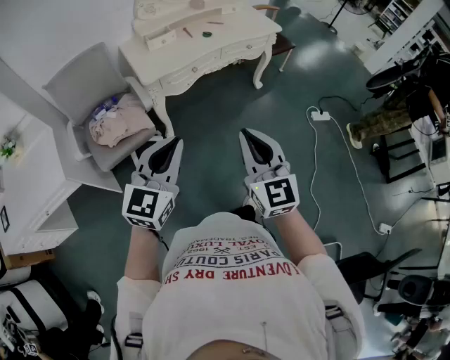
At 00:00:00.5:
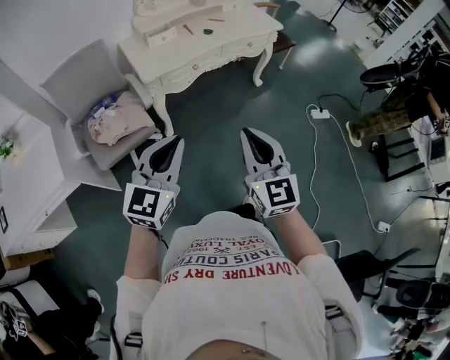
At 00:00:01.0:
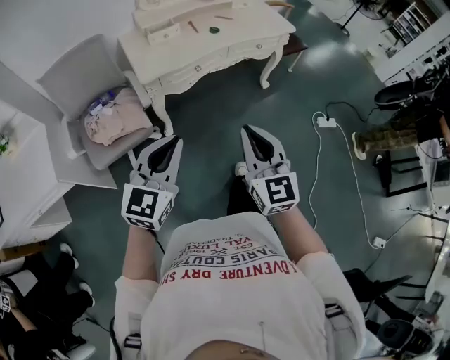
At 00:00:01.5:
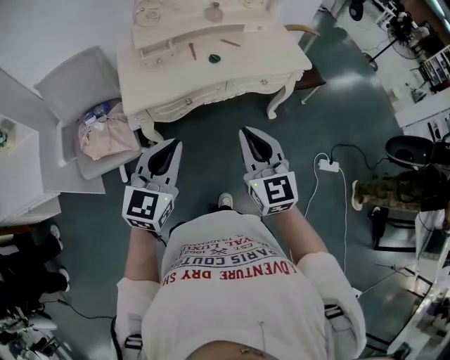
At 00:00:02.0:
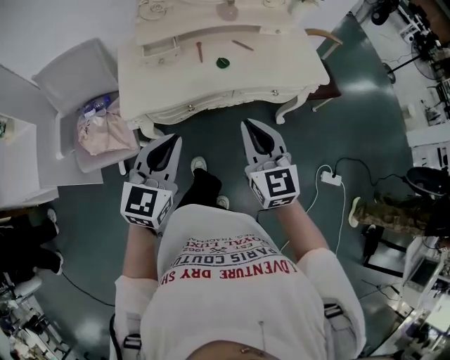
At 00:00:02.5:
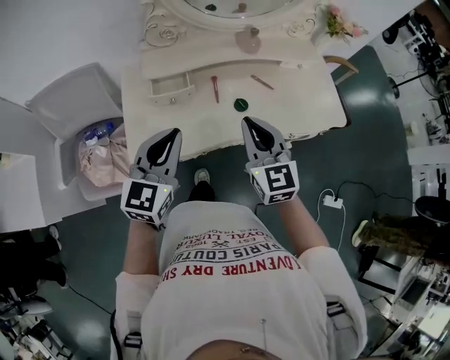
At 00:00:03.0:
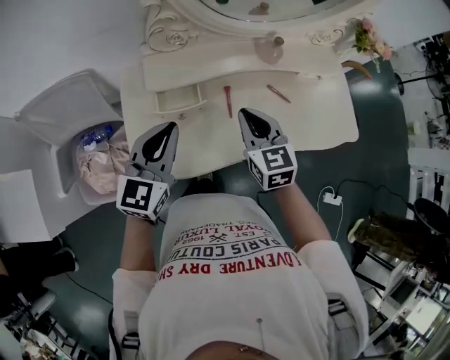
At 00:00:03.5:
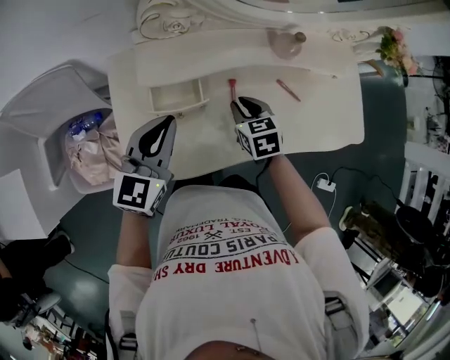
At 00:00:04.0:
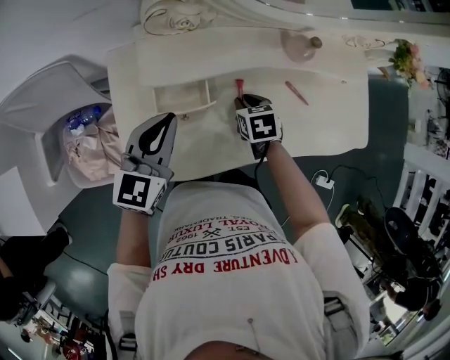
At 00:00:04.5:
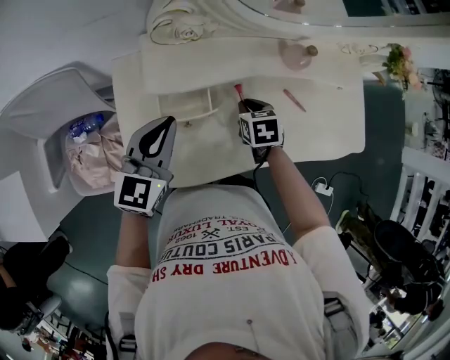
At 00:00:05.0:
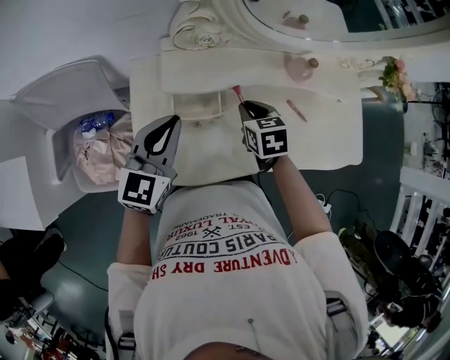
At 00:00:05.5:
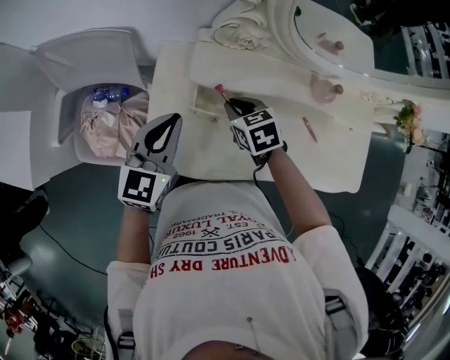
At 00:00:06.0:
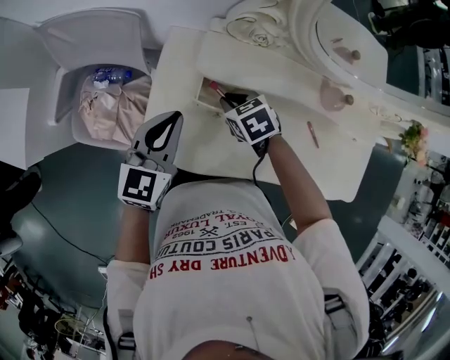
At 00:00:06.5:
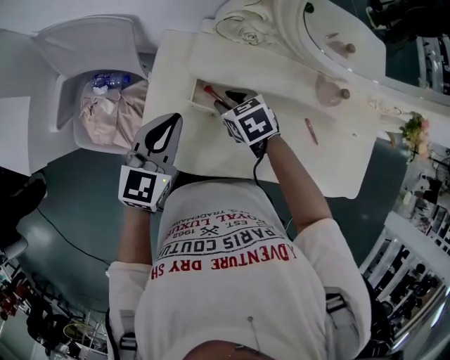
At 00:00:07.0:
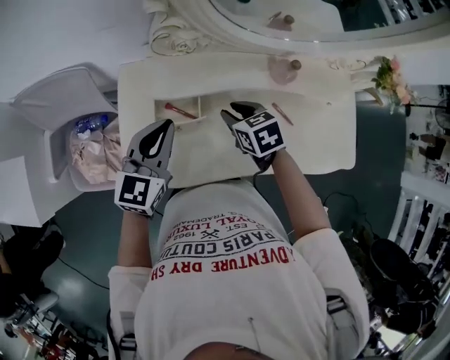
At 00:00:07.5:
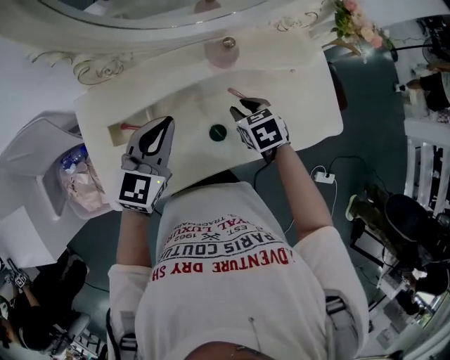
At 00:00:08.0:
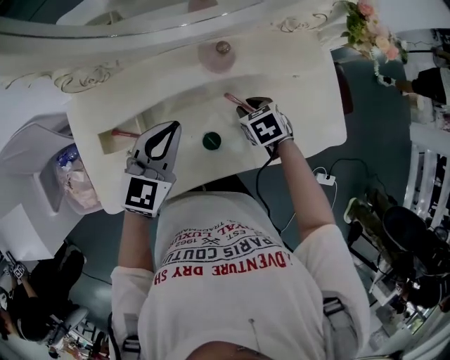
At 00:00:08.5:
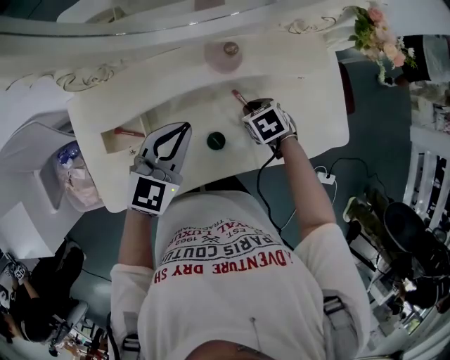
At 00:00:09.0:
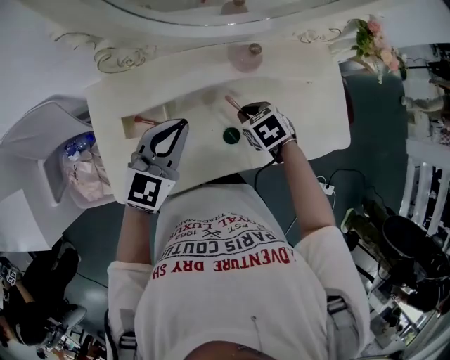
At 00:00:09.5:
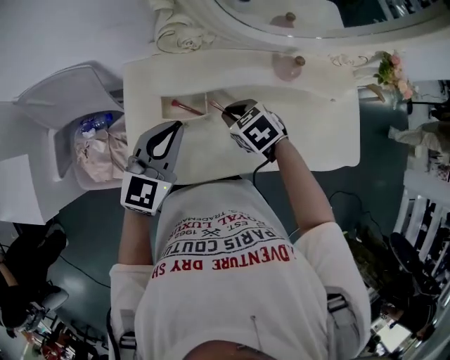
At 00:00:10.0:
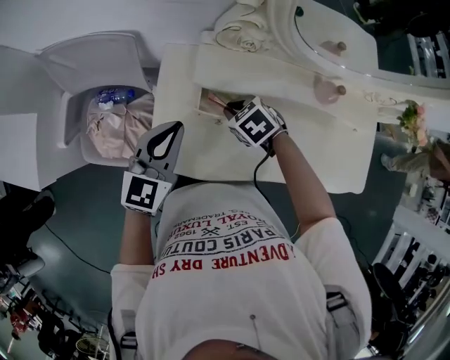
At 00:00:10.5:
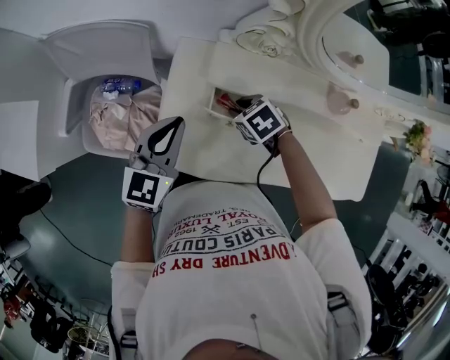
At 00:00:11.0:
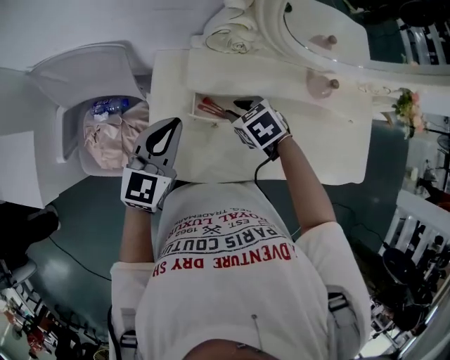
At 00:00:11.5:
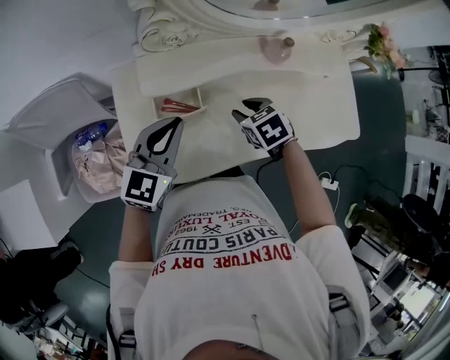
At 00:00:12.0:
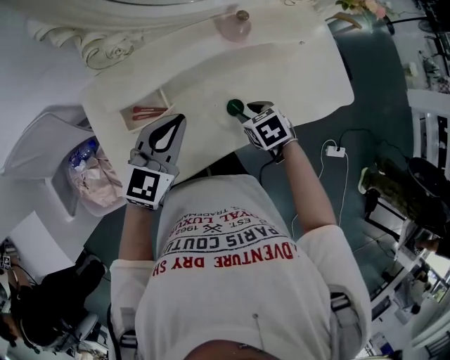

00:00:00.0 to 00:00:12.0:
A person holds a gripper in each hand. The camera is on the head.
00:00:00.0 to 00:00:02.0: The pair of grippers is taken forward, about 50 cm. The left gripper rotates approximately 20 degrees; the right gripper swivels some 20 degrees.
00:00:02.0 to 00:00:04.0: Both grippers are carried forward, some 40 cm. The right gripper travels downward by approximately 30 cm, and angles its fingers downward, by approximately 50 degrees.
00:00:04.0 to 00:00:06.0: The right gripper ends up some 20 cm from where it was, and swivels about 40 degrees. The left gripper moves roughly 10 cm, and rotates some 20 degrees.
00:00:06.0 to 00:00:08.0: The left gripper ends up roughly 30 cm from where it was, and swivels some 30 degrees. Meanwhile the right gripper changes place by some 40 cm, and swivels about 30 degrees.
00:00:08.0 to 00:00:10.0: The left gripper ends up roughly 30 cm from where it was, and turns by roughly 20 degrees. Meanwhile the right gripper moves roughly 40 cm, and swivels roughly 40 degrees.
00:00:10.0 to 00:00:12.0: The right gripper changes place by roughly 30 cm, rolls clockwise, seen from behind, by some 40 degrees, and opens up. Meanwhile the left gripper moves approximately 20 cm, and turns by approximately 30 degrees.

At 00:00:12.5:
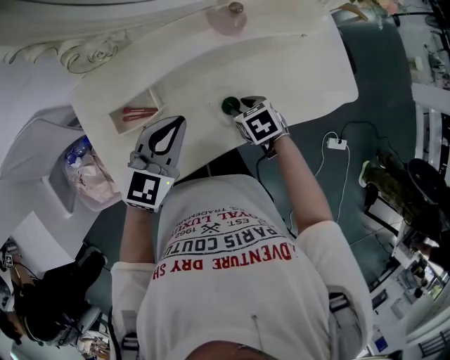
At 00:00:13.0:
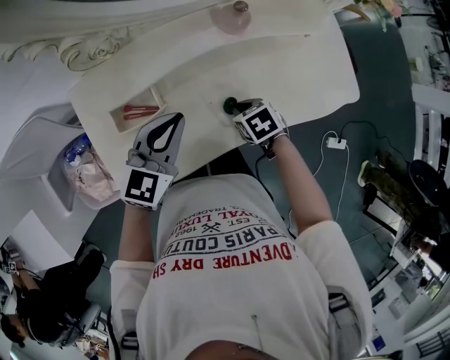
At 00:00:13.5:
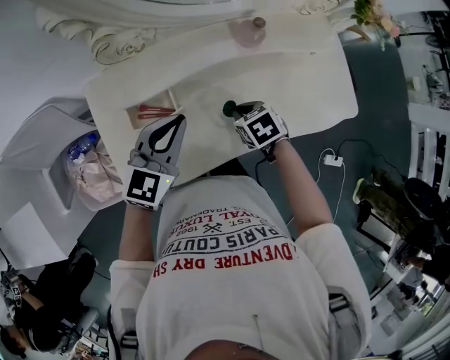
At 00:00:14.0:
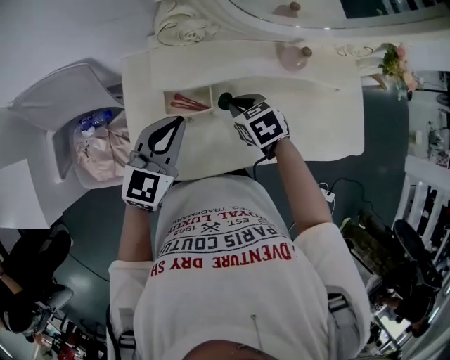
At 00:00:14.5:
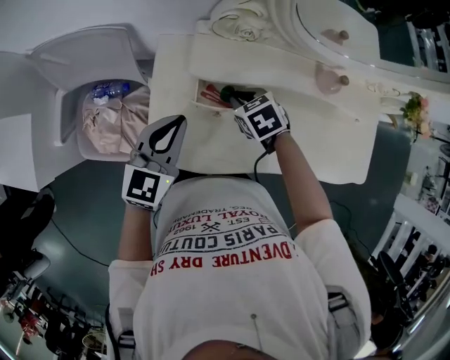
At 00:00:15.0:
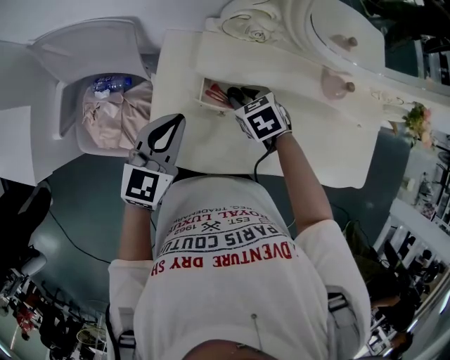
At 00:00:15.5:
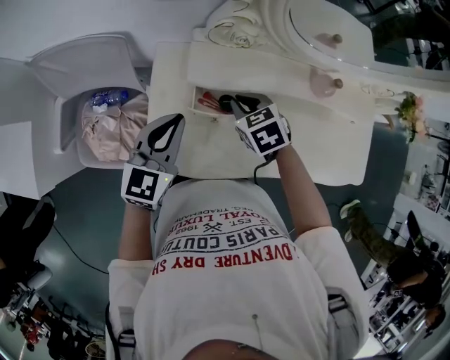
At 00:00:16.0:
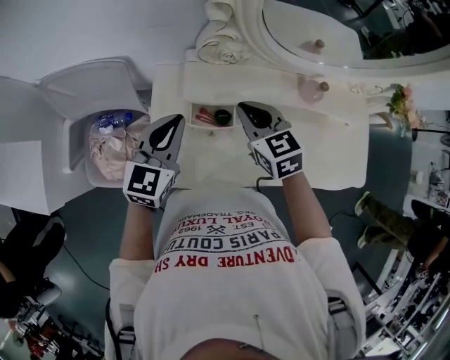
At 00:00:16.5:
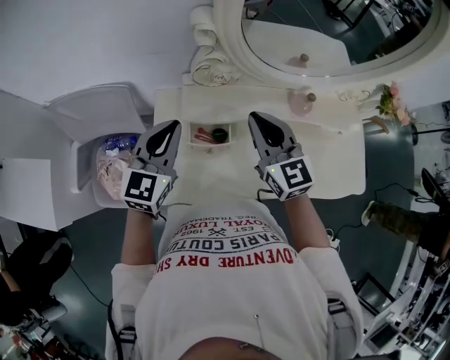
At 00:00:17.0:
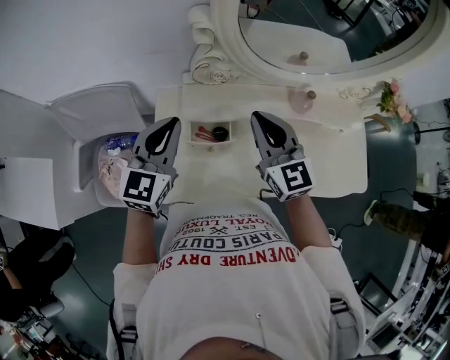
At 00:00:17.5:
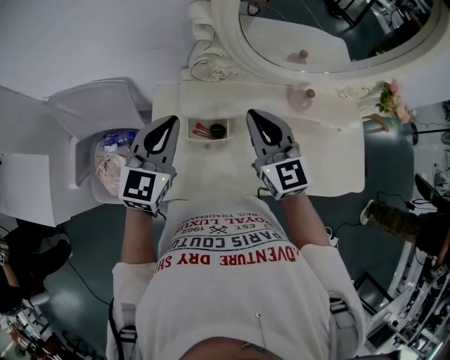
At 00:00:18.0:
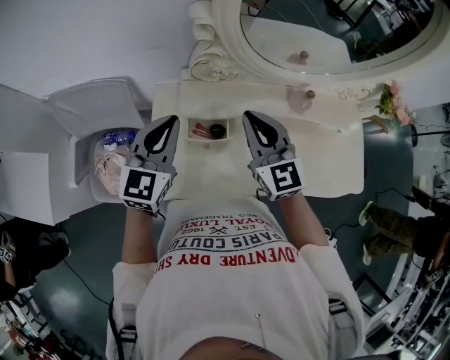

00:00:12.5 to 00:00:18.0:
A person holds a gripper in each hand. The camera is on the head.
00:00:12.5 to 00:00:14.5: The left gripper moves to the left, roughly 20 cm, and swivels about 30 degrees, while the right gripper is displaced to the left and forward by approximately 25 cm, turns by roughly 30 degrees, and closes its fingers.
00:00:14.5 to 00:00:16.0: The left gripper changes place by about 5 cm. The right gripper heads upward, covering approximately 15 cm, turns by roughly 30 degrees, and opens, then closes once more.
00:00:16.0 to 00:00:18.0: Both grippers travel together upward, about 5 cm. The right gripper turns by approximately 30 degrees.

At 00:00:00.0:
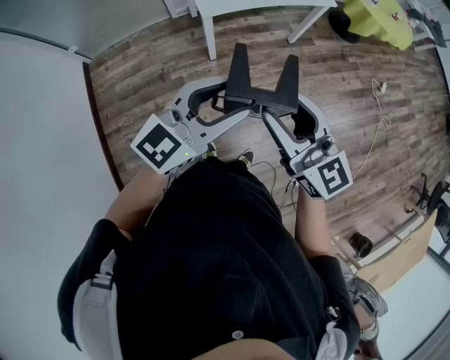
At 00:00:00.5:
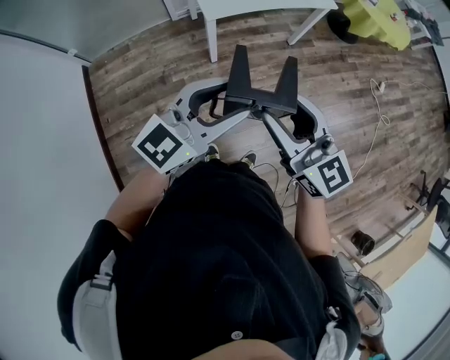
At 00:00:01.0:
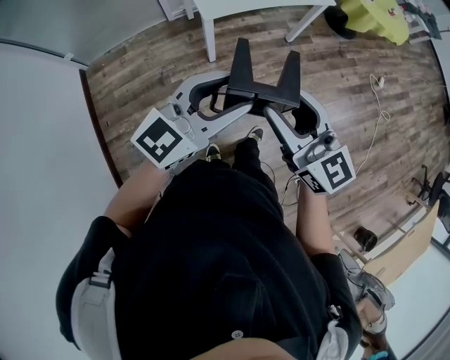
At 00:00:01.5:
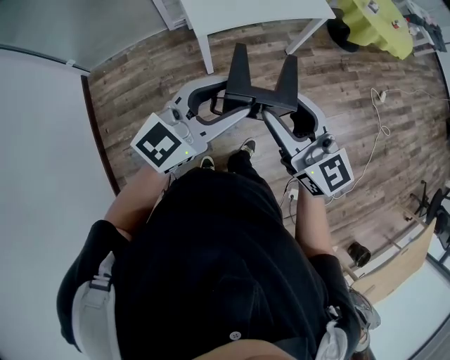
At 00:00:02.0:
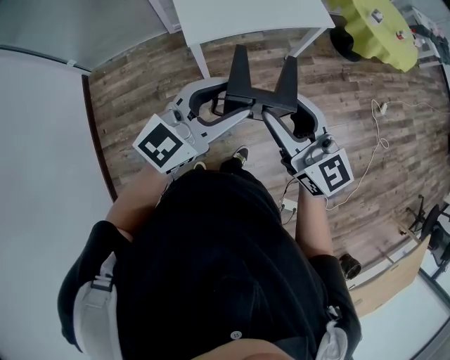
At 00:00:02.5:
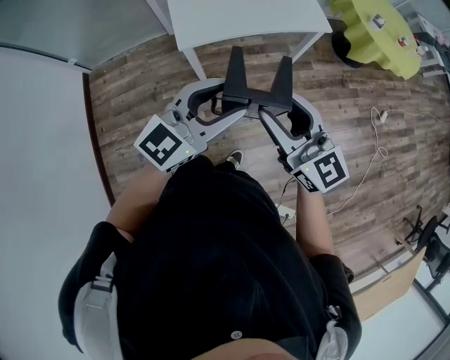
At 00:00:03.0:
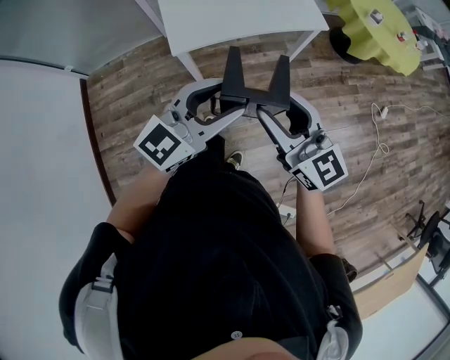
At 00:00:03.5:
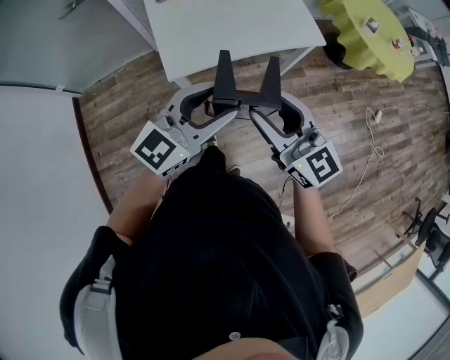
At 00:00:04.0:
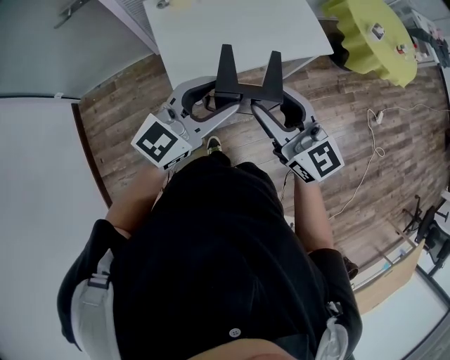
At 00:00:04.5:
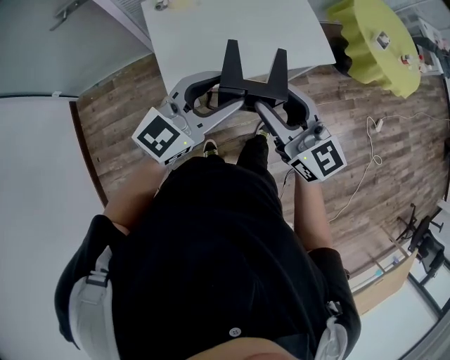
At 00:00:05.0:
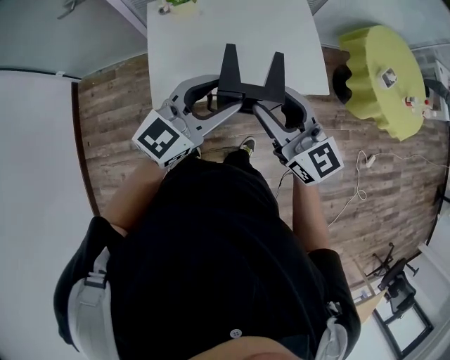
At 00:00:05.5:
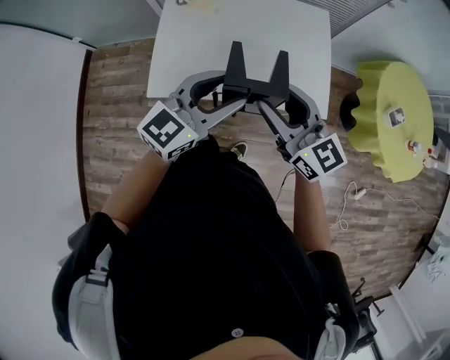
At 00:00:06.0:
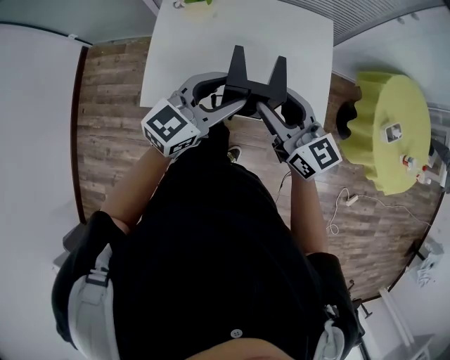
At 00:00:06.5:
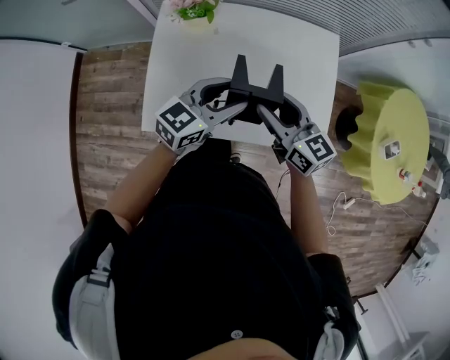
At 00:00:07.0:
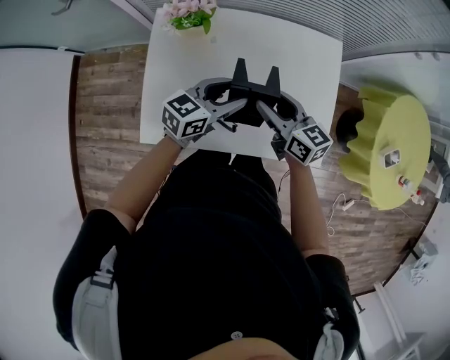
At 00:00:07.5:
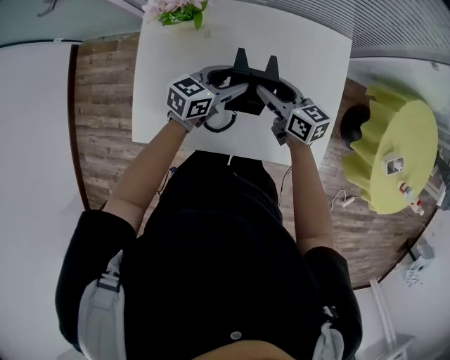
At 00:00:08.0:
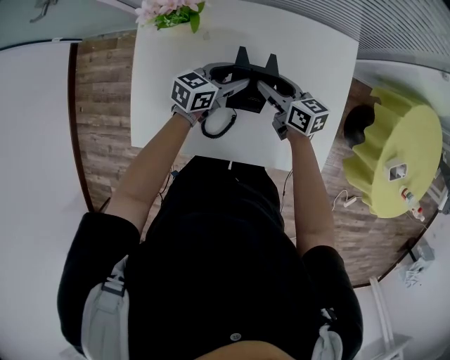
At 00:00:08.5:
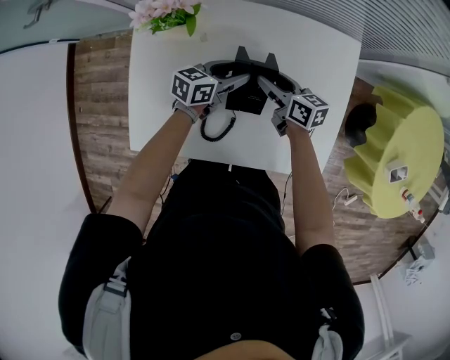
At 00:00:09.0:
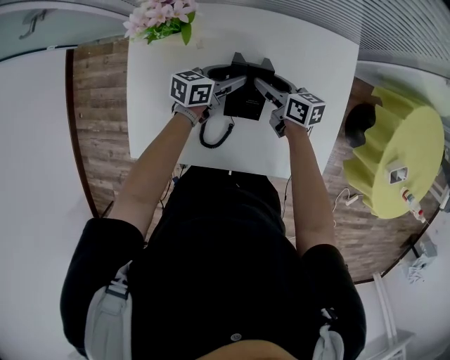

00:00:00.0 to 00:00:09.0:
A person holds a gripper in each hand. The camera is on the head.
00:00:00.0 to 00:00:02.0: The grippers both shift forward and to the right by about 20 cm.
00:00:02.0 to 00:00:04.5: Both grippers travel together forward, roughly 30 cm.
00:00:04.5 to 00:00:07.0: The grippers both shift forward and downward by about 40 cm. The right gripper swivels approximately 40 degrees. Meanwhile the left gripper changes its angle by approximately 40 degrees.
00:00:07.0 to 00:00:09.0: Both grippers travel together downward and forward, roughly 25 cm. The left gripper rotates approximately 20 degrees. Meanwhile the right gripper changes its angle by about 20 degrees.
